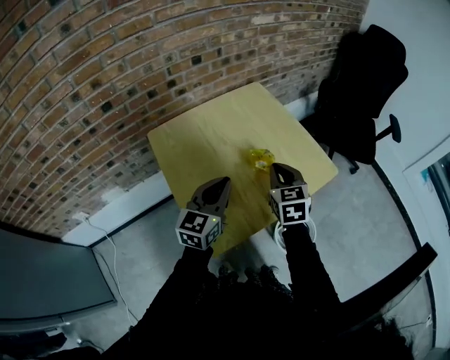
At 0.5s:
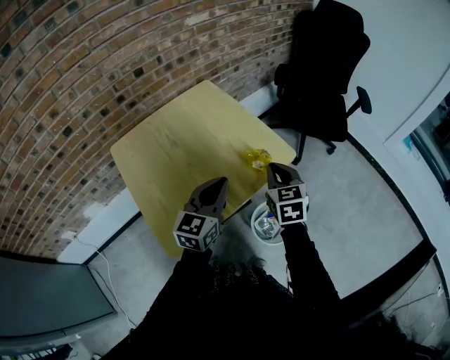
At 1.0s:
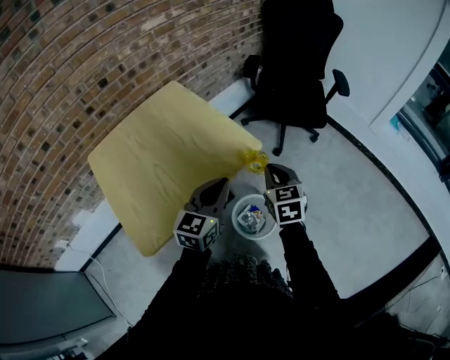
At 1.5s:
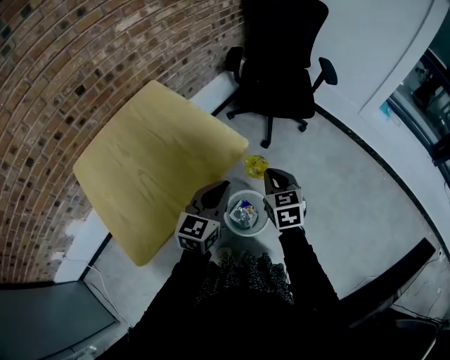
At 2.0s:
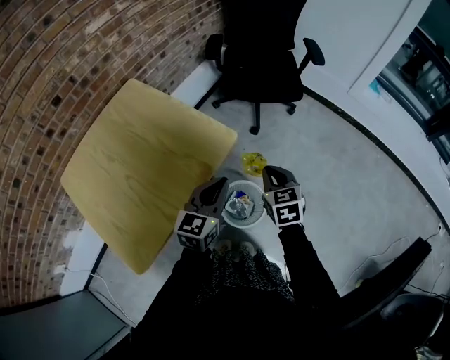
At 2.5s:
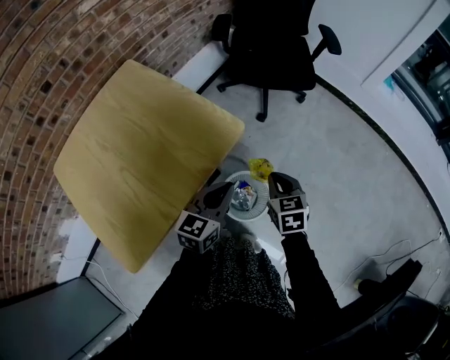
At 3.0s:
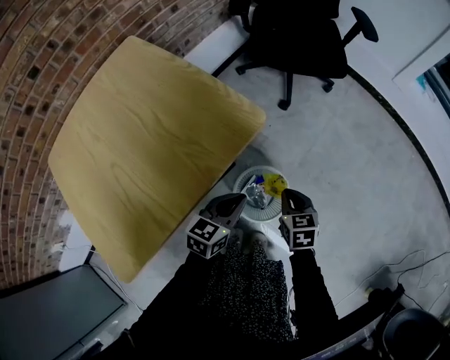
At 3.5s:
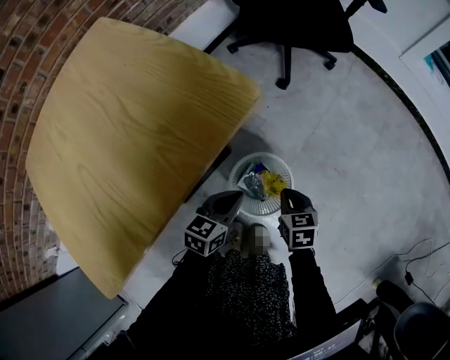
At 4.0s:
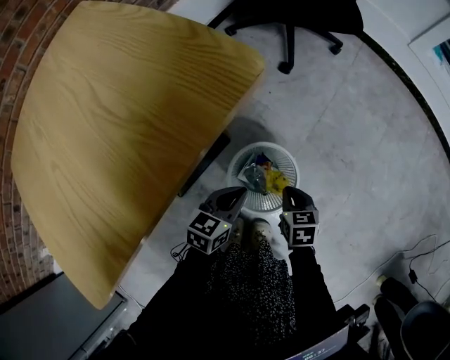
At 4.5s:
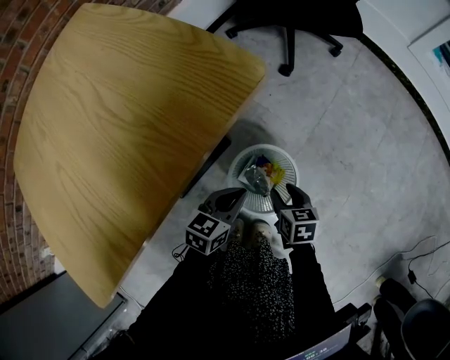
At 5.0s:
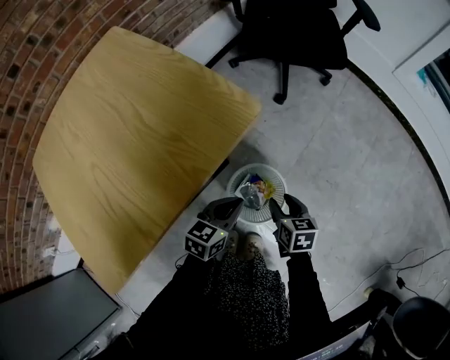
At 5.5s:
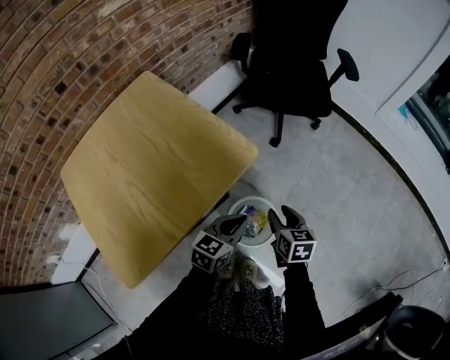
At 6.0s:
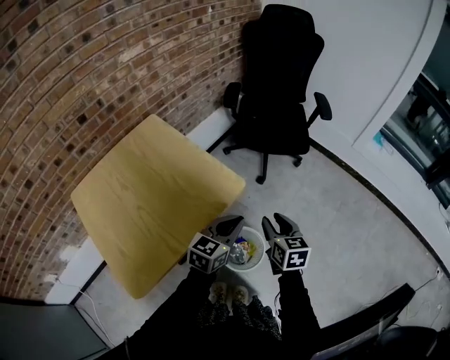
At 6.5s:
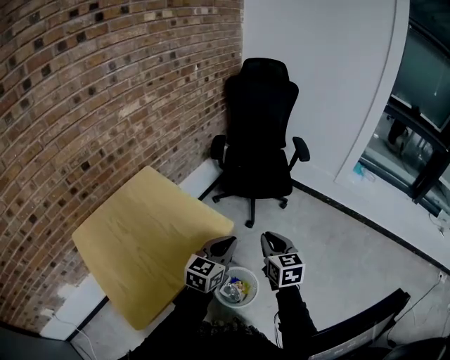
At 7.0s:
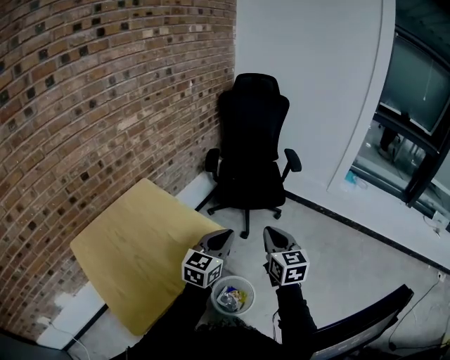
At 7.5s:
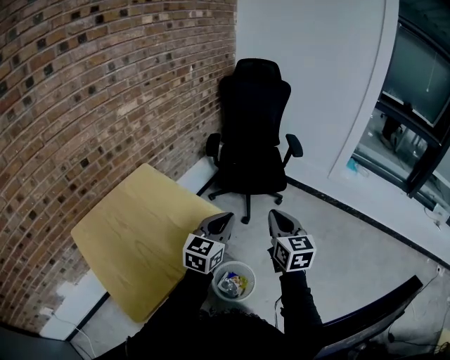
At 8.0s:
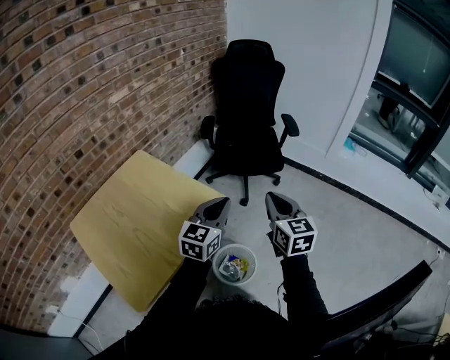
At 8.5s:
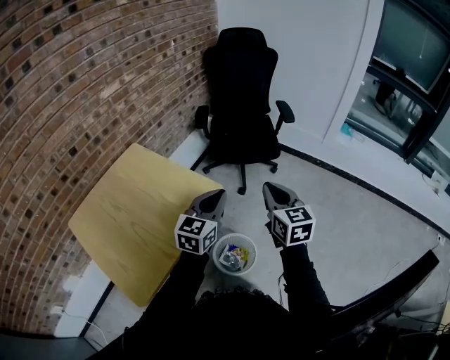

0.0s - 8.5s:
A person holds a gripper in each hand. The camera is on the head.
0.0s - 2.0s: The two grippers go approximately 35 cm to the right. The right gripper turns by roughly 20 degrees, while the left gripper turns by approximately 20 degrees.
2.0s - 4.0s: Both grippers move downward, some 40 cm. The right gripper swivels roughly 20 degrees. Meanwhile the left gripper rotates approximately 30 degrees.
4.0s - 6.5s: Both grippers move upward, about 50 cm. The left gripper rotates some 30 degrees, while the right gripper tilts its fingers some 30 degrees upward, and opens, then closes again.
6.5s - 8.5s: The right gripper goes approximately 5 cm upward.

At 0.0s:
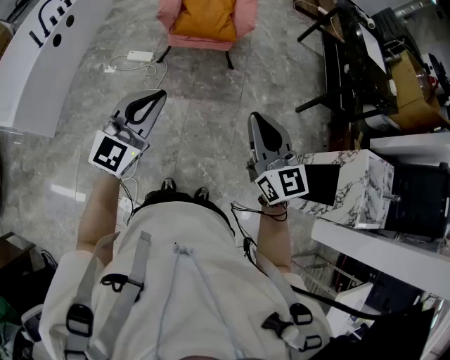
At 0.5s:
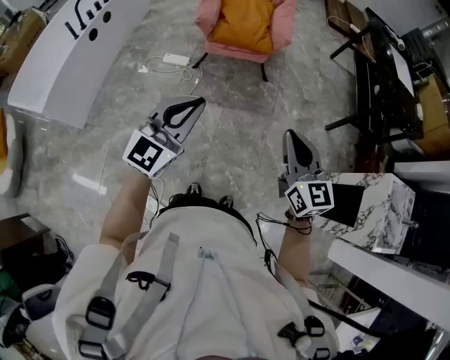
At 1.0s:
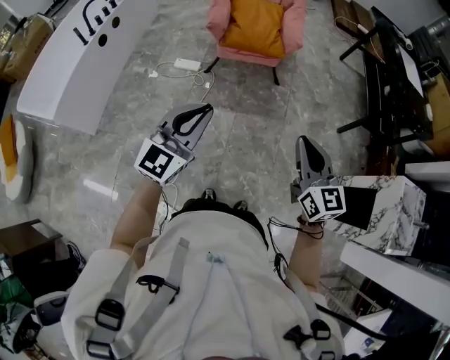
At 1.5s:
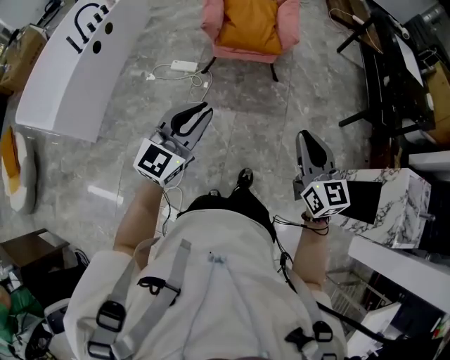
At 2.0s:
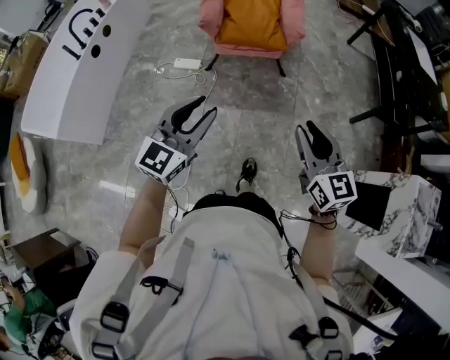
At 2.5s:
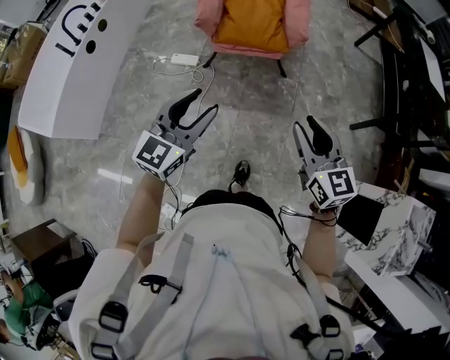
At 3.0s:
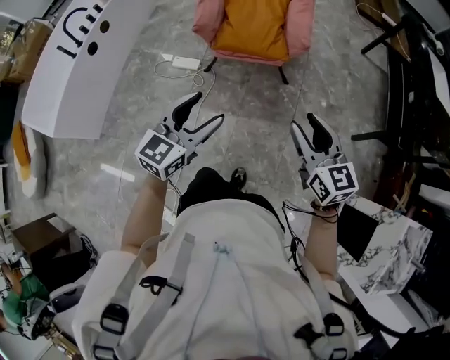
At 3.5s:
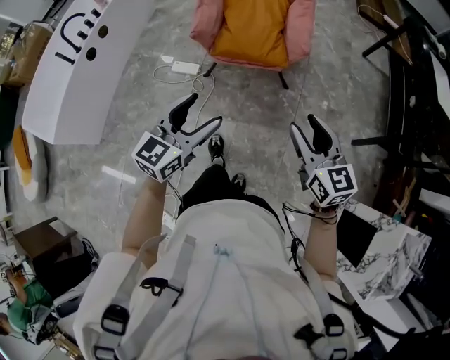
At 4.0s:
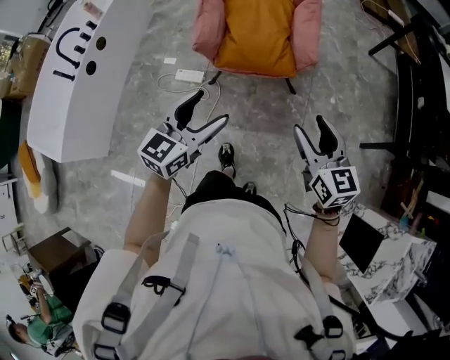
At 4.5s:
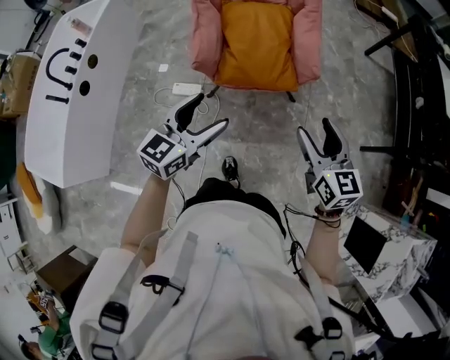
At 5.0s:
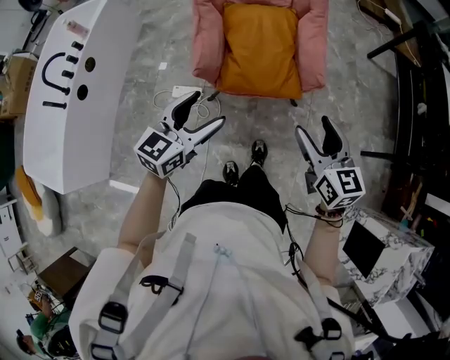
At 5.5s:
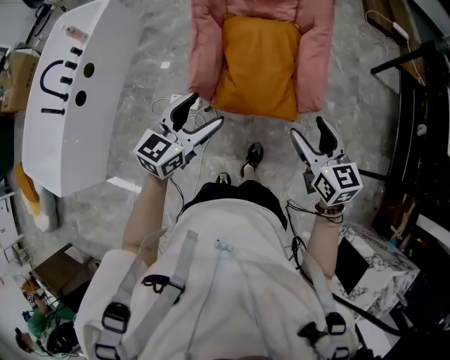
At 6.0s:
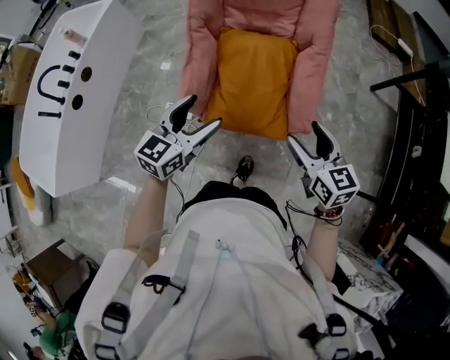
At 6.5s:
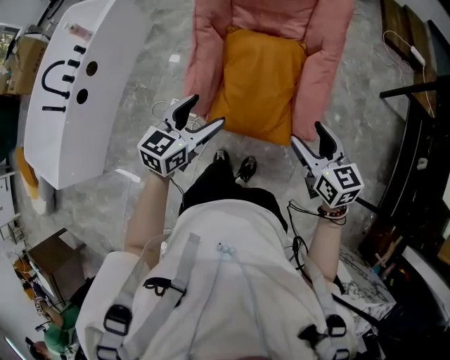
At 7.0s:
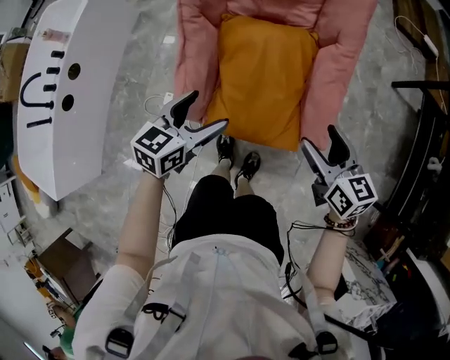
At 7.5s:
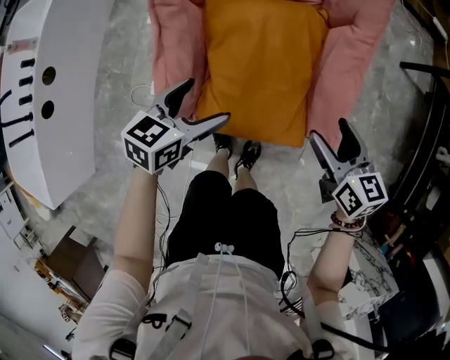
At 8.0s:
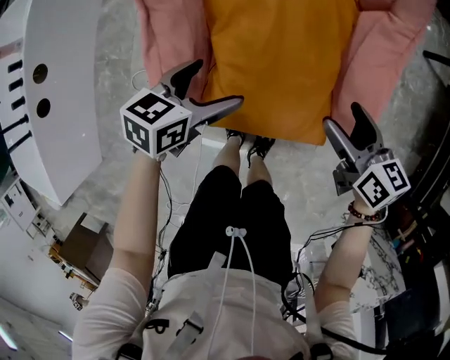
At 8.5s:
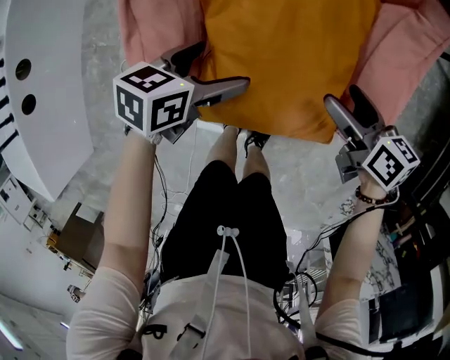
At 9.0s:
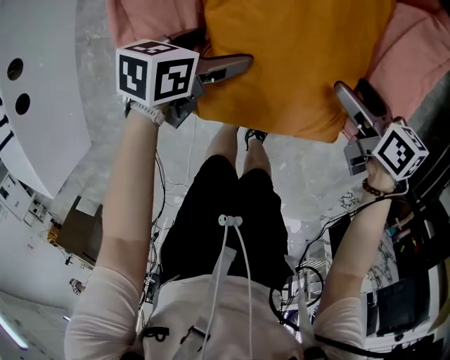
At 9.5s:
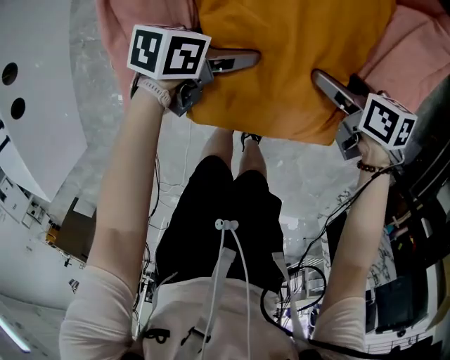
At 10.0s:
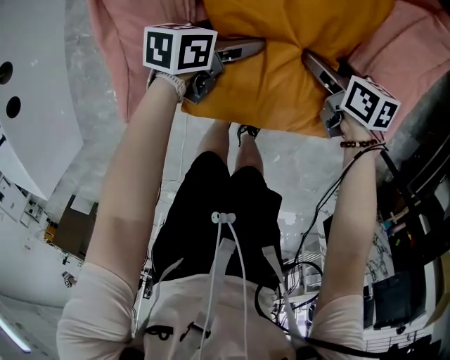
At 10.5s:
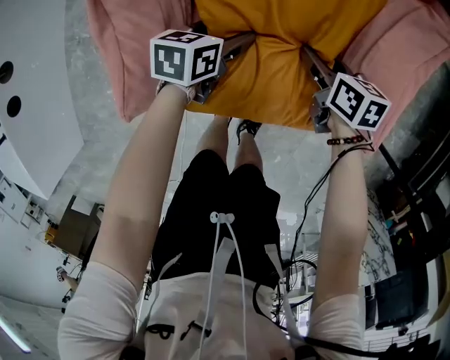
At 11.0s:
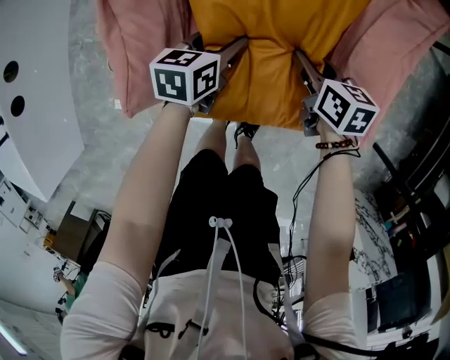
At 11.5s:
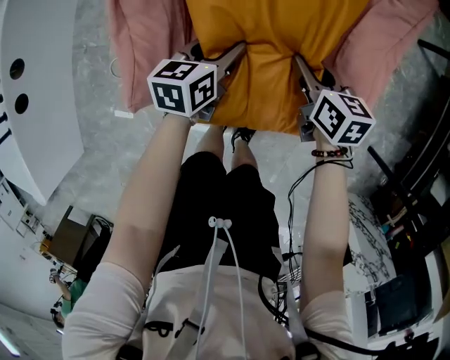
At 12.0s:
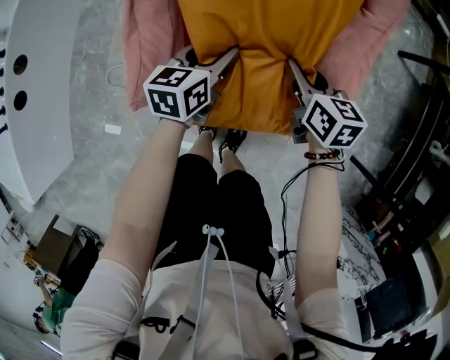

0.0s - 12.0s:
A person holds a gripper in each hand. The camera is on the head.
0.0s - 2.0s: The left gripper is displaced forward by about 10 cm, while the right gripper is displaced forward and downward by about 15 cm.
2.0s - 4.0s: Both grippers travel together forward, roughly 30 cm. The left gripper opens up.
4.0s - 6.0s: Both grippers move forward, about 35 cm.
6.0s - 8.0s: The grippers both shift downward and forward by roughly 35 cm. The left gripper rotates some 40 degrees; the right gripper turns by some 30 degrees.
8.0s - 10.0s: Both grippers move downward, approximately 20 cm. The left gripper rotates about 20 degrees.
10.0s - 12.0s: Both grippers travel together upward, about 20 cm. The left gripper rotates roughly 30 degrees, and closes its fingers. Meanwhile the right gripper rotates approximately 20 degrees, and closes its fingers.

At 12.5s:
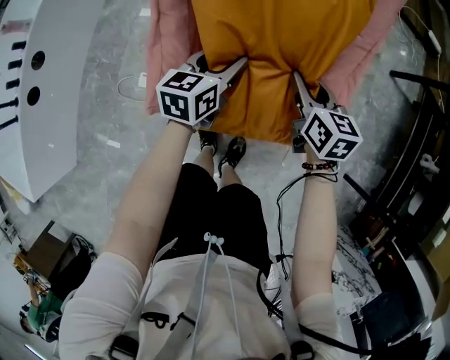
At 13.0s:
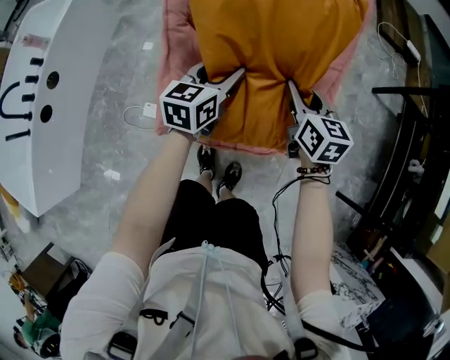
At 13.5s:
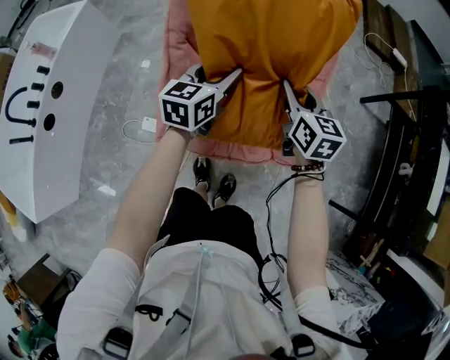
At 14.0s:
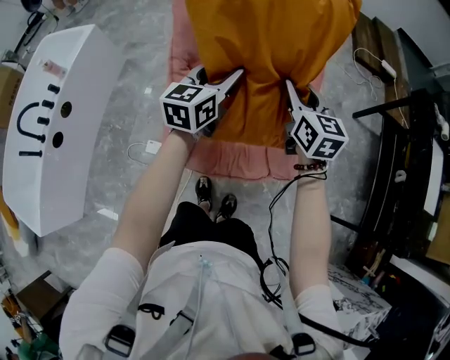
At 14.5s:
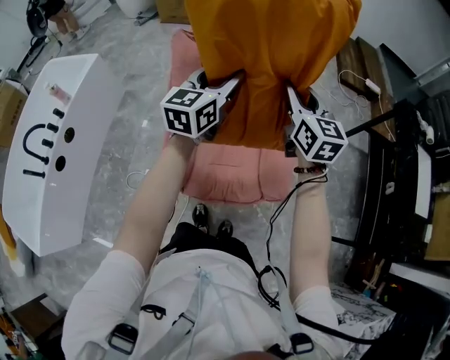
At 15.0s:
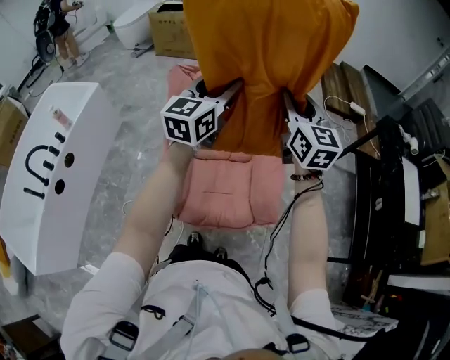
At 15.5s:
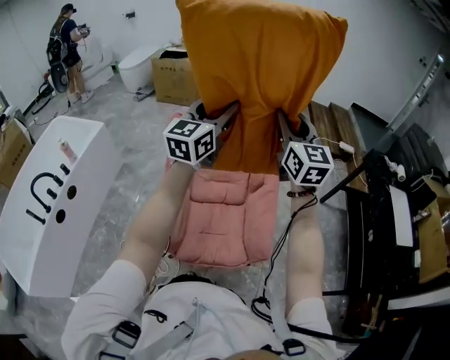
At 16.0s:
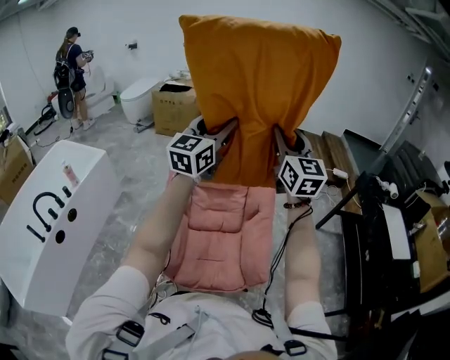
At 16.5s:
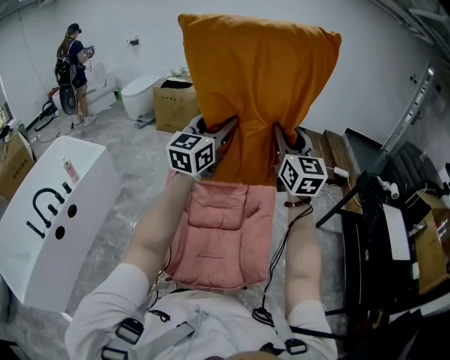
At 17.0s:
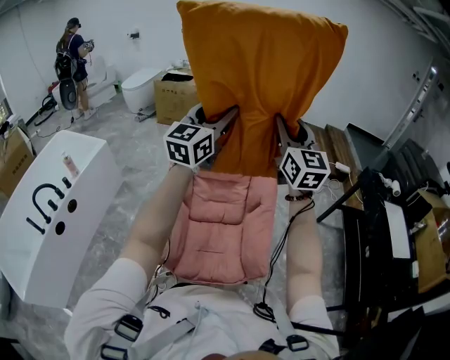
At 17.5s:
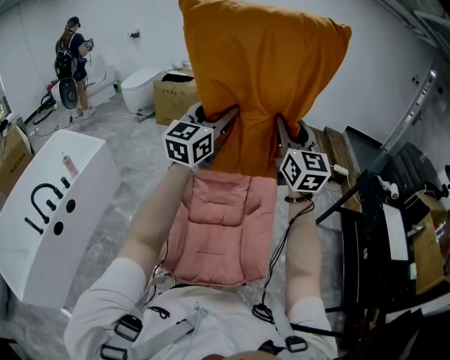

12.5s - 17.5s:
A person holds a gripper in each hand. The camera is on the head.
12.5s - 15.0s: Both grippers travel together upward, approximately 50 cm. The right gripper tilts its fingers approximately 30 degrees upward, while the left gripper points its fingers some 30 degrees further upward.
15.0s - 17.5s: Both grippers travel together upward, roughly 20 cm.

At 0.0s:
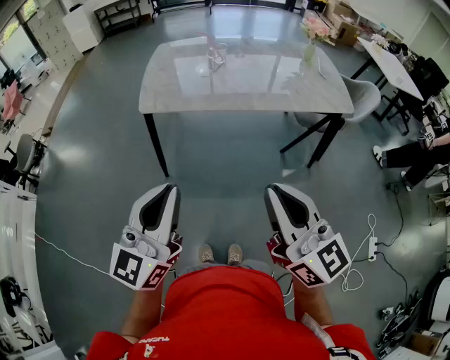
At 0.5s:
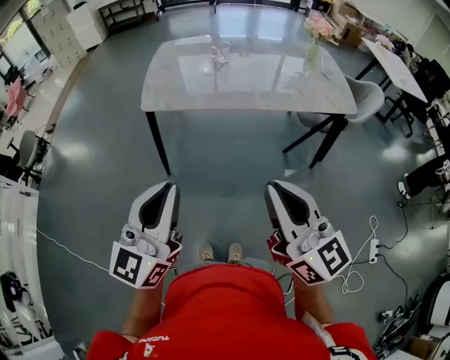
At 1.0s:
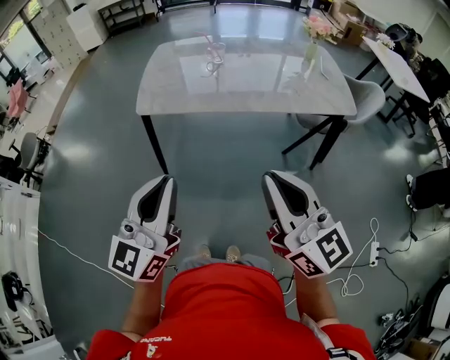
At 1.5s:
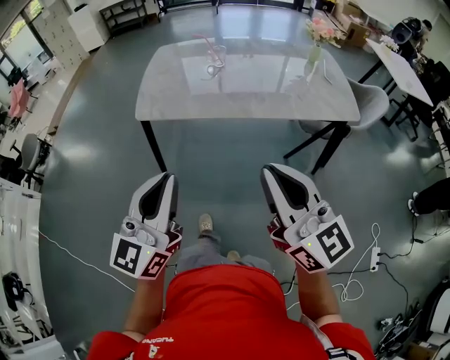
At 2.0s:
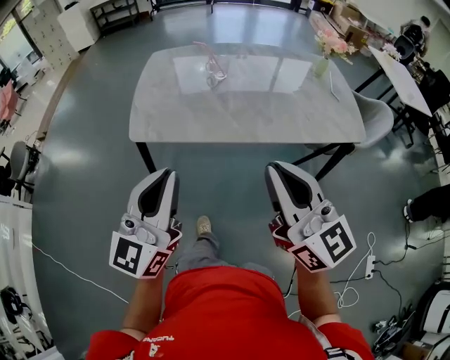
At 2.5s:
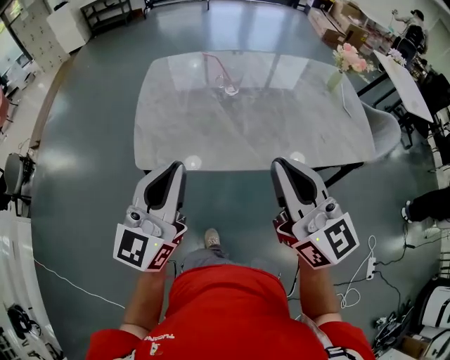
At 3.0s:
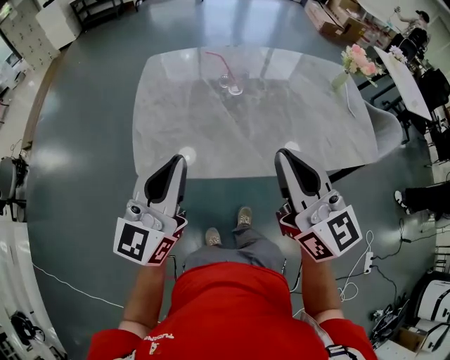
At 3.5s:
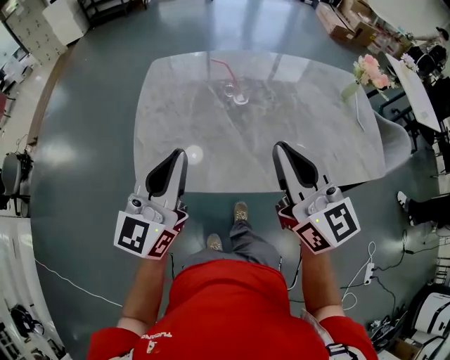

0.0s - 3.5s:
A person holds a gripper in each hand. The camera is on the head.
0.0s - 2.0s: Both grippers travel together forward, about 20 cm.
2.0s - 3.5s: The two grippers go approximately 25 cm forward.
